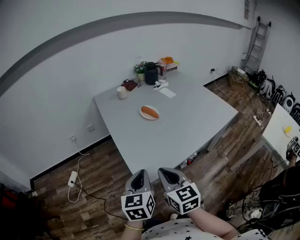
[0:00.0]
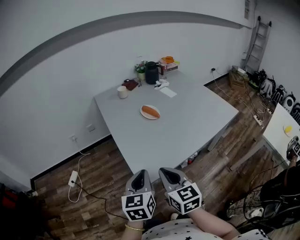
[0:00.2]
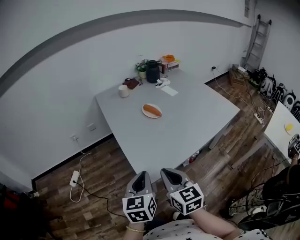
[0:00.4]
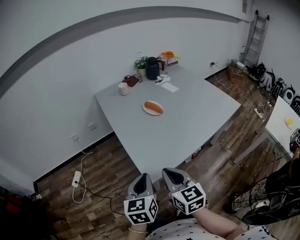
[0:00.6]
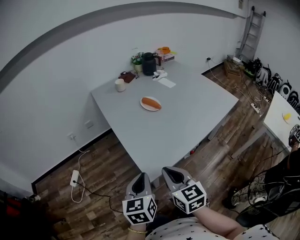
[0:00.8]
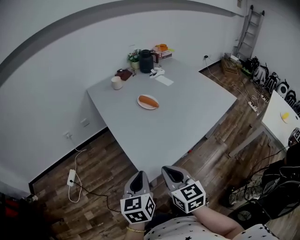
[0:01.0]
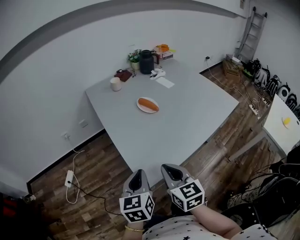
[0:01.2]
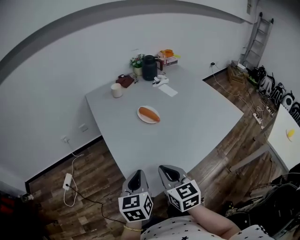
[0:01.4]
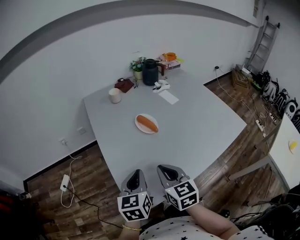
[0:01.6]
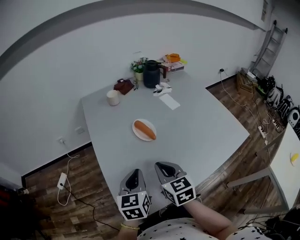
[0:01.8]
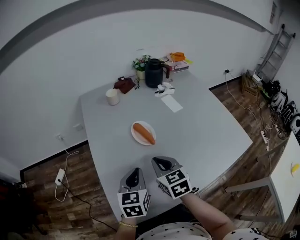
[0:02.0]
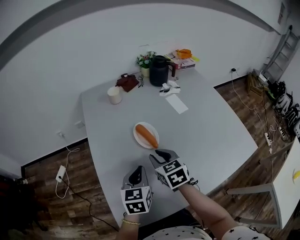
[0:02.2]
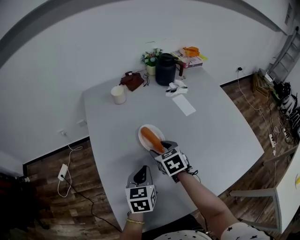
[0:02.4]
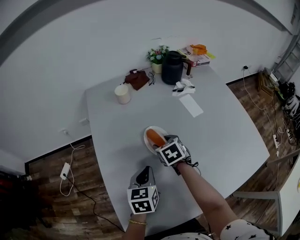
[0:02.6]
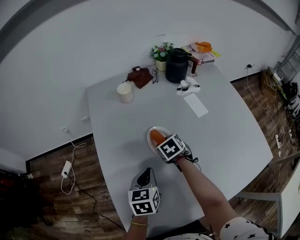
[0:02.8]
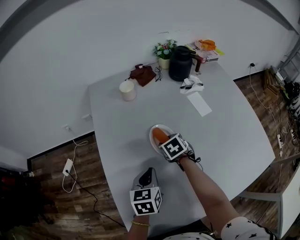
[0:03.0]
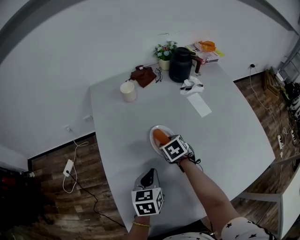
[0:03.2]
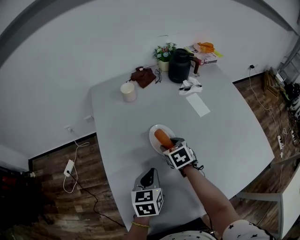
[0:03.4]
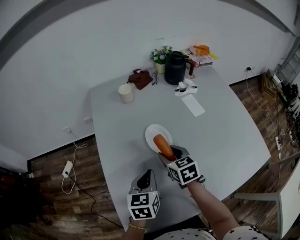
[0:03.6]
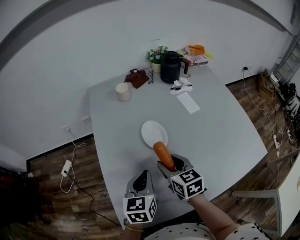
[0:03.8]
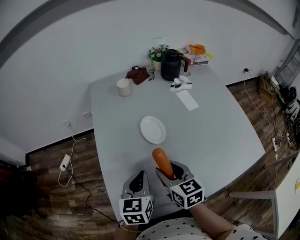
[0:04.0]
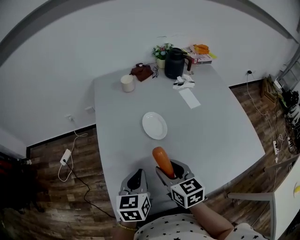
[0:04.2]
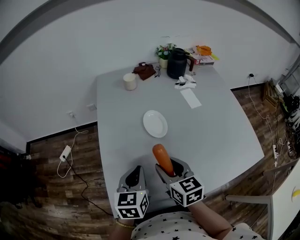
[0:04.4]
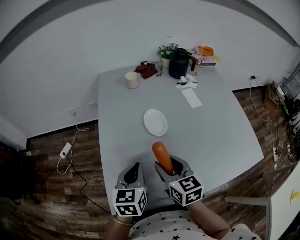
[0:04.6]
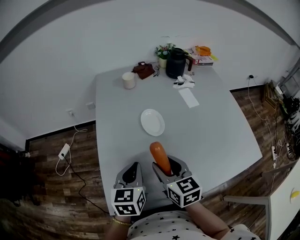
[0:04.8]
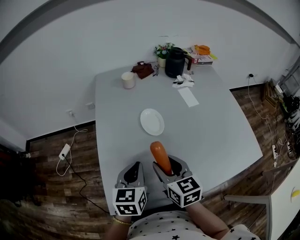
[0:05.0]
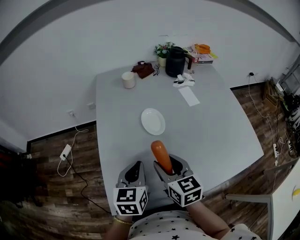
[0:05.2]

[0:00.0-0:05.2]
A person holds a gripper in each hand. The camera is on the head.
0:00.0 to 0:01.8: Both grippers move forward, about 25 cm.
0:01.8 to 0:03.4: The right gripper heads forward and downward, covering some 30 cm, swivels some 30 degrees, and opens its fingers. Meanwhile the left gripper travels forward and downward by some 15 cm.
0:03.4 to 0:05.2: The right gripper goes some 25 cm backward and upward, and rotates approximately 30 degrees. The left gripper shifts roughly 15 cm backward and upward.

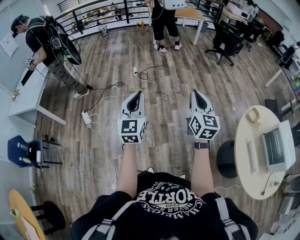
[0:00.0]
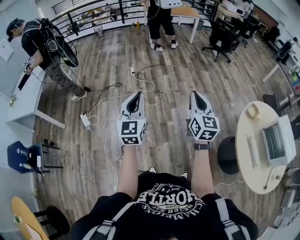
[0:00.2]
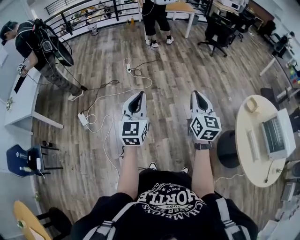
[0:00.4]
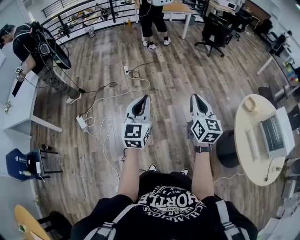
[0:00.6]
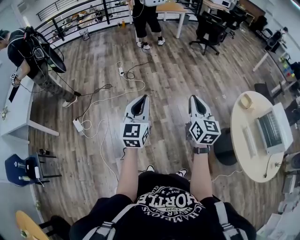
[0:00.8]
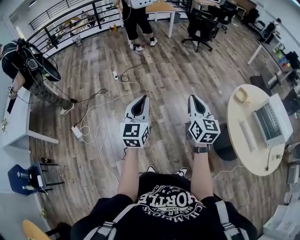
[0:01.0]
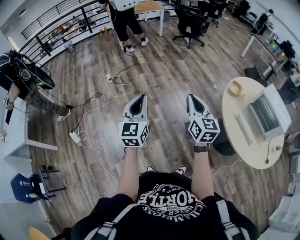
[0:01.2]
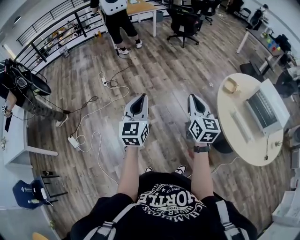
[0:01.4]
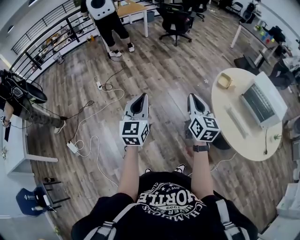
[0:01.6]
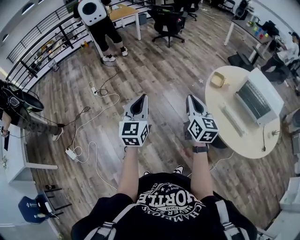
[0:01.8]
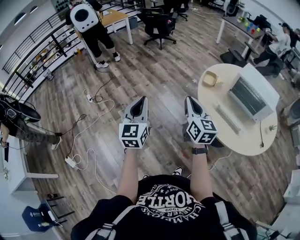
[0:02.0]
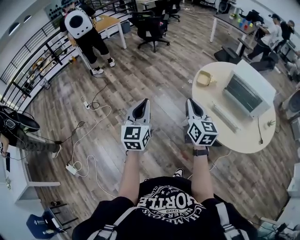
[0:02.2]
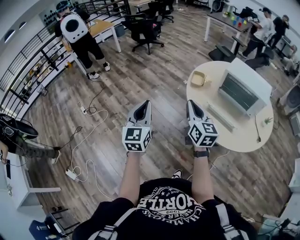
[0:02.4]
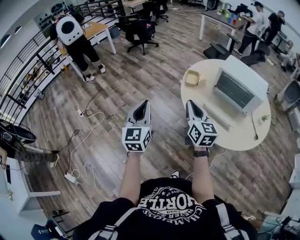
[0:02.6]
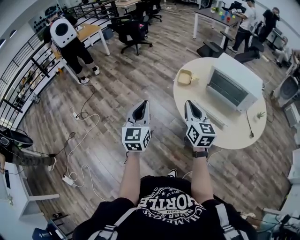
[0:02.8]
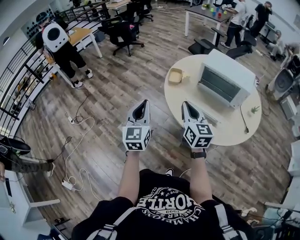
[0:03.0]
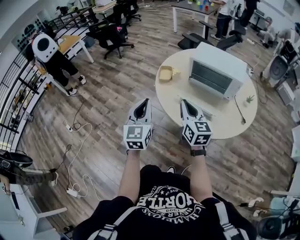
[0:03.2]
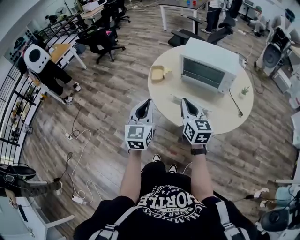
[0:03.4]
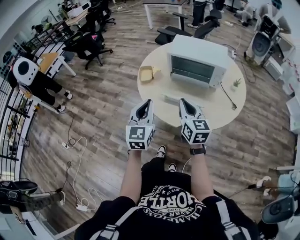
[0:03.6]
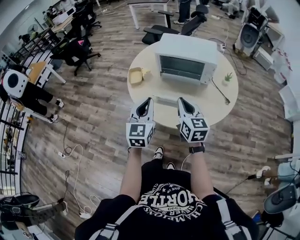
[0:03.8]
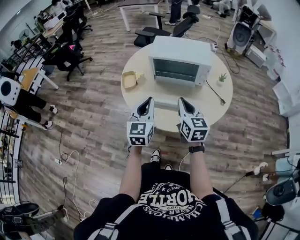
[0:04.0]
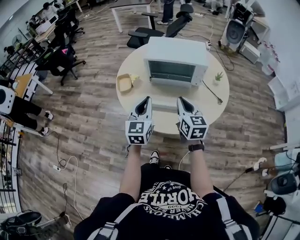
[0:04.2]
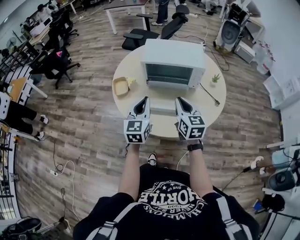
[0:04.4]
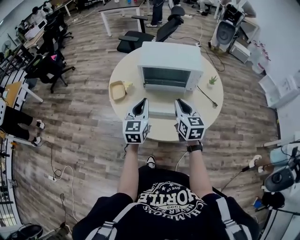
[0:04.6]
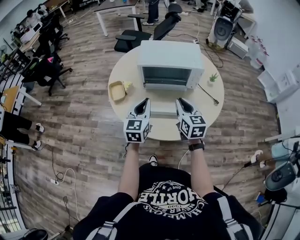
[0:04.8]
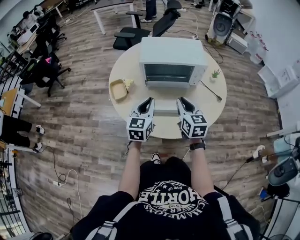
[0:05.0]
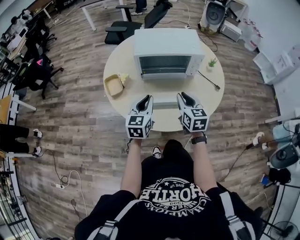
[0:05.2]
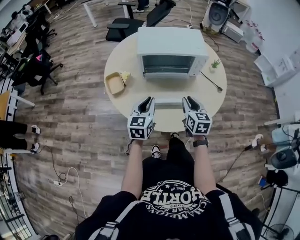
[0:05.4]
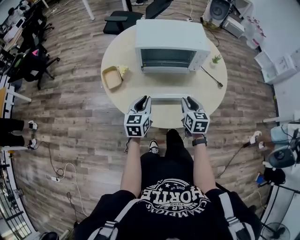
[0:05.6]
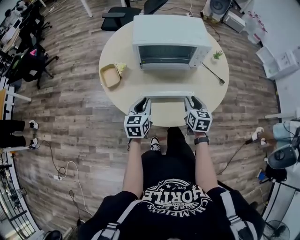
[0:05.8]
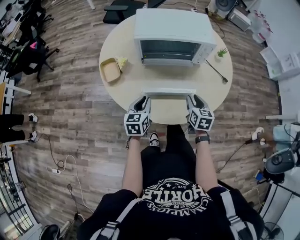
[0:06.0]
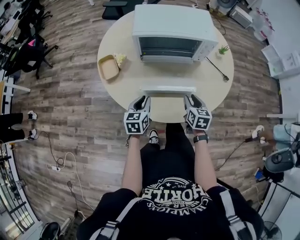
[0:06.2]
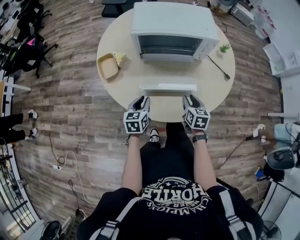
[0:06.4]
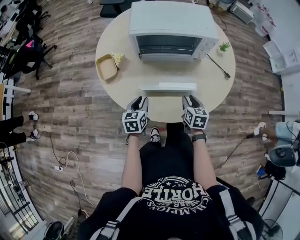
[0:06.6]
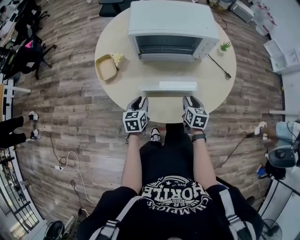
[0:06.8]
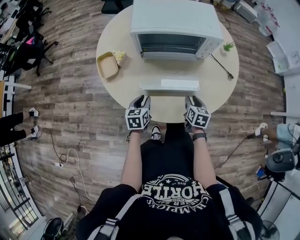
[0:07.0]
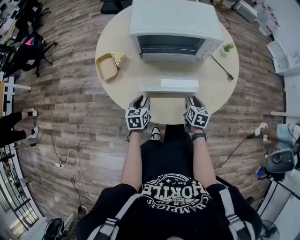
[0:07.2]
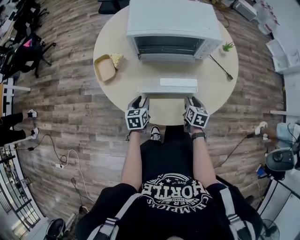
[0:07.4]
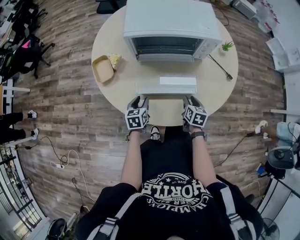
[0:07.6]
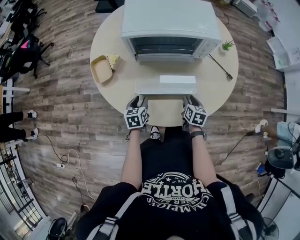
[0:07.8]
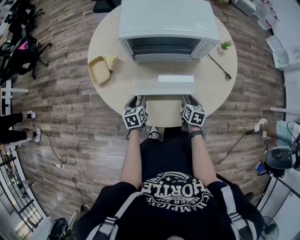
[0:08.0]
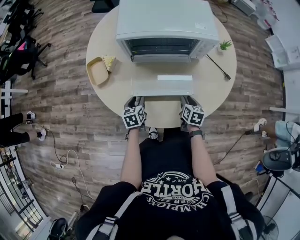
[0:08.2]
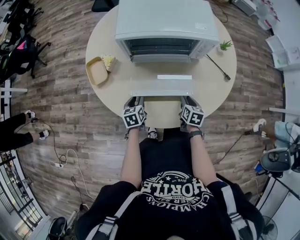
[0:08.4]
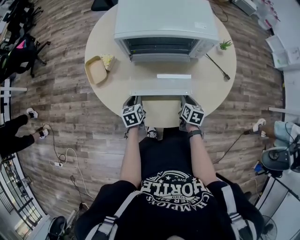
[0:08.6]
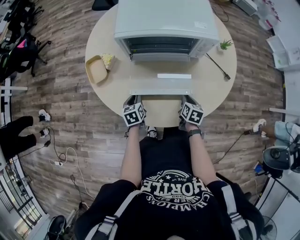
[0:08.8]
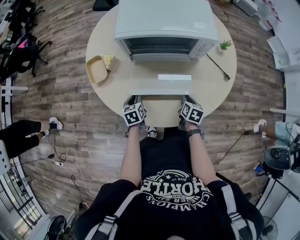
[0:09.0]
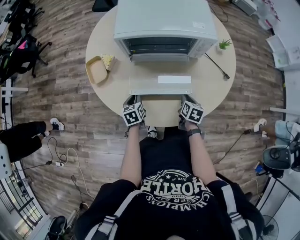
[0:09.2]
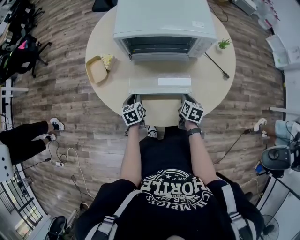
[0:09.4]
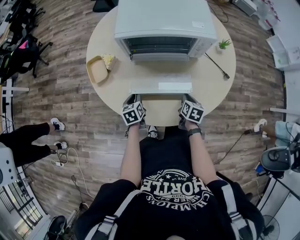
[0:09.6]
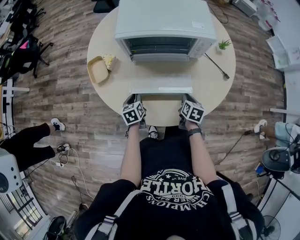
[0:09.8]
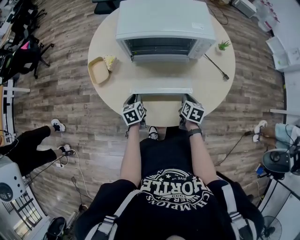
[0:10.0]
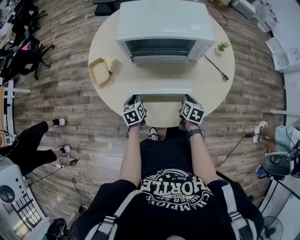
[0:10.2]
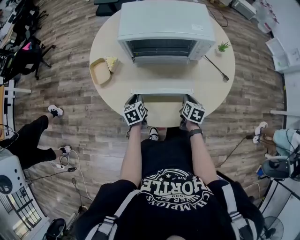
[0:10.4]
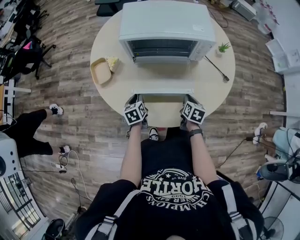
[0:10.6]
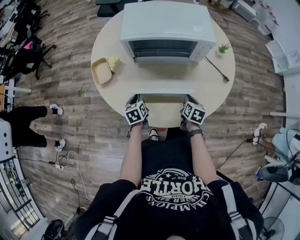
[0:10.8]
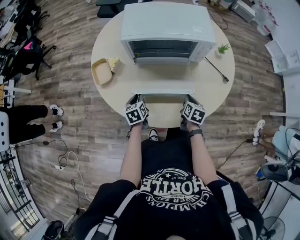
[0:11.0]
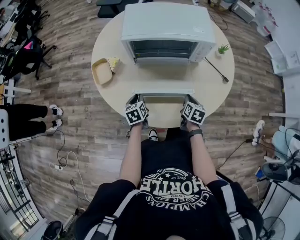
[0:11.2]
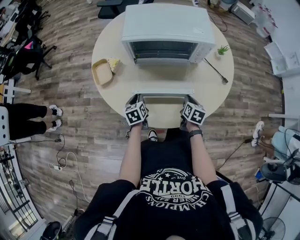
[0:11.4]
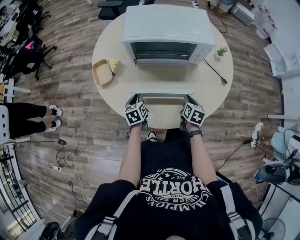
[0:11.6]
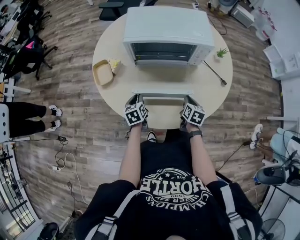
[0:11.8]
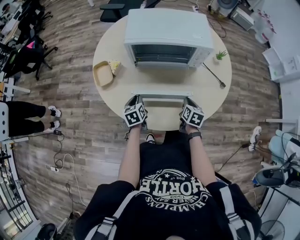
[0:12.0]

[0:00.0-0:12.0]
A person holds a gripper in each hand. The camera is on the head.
0:00.0 to 0:01.6: Both grippers travel together to the right, approximately 25 cm. The left gripper changes its angle by approximately 30 degrees; the right gripper rotates about 20 degrees.
0:01.6 to 0:03.0: The grippers both shift to the right by about 30 cm. The left gripper turns by some 20 degrees.
0:03.0 to 0:04.4: The left gripper ends up approximately 30 cm from where it was, and rotates about 30 degrees. The right gripper moves some 25 cm, and turns by about 30 degrees.
0:04.4 to 0:06.0: Both grippers travel together downward, some 20 cm. The left gripper rotates approximately 30 degrees; the right gripper changes its angle by roughly 30 degrees, and opens its fingers.
0:06.0 to 0:07.6: The grippers both shift downward by roughly 10 cm. The left gripper opens its fingers.
0:07.6 to 0:09.0: The left gripper closes its fingers.
0:09.0 to 0:12.0: There are only small adjustments of the grippers.

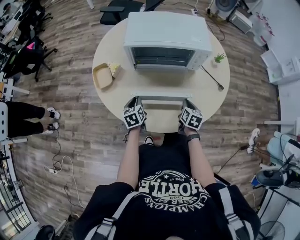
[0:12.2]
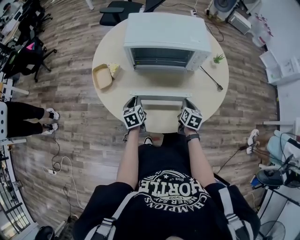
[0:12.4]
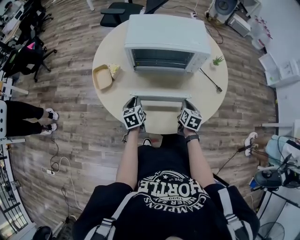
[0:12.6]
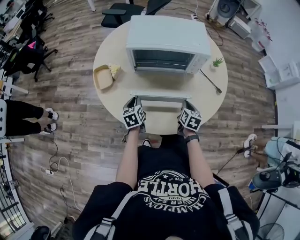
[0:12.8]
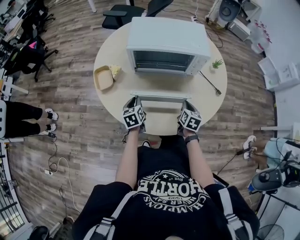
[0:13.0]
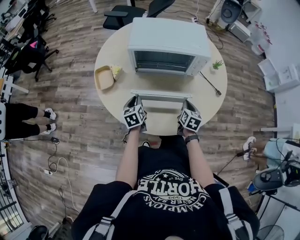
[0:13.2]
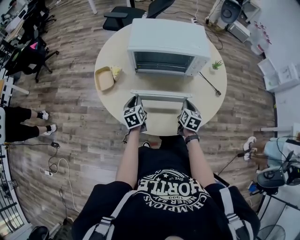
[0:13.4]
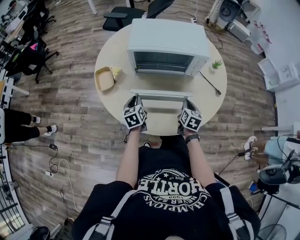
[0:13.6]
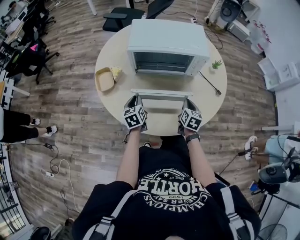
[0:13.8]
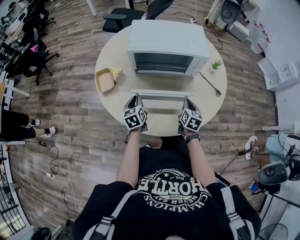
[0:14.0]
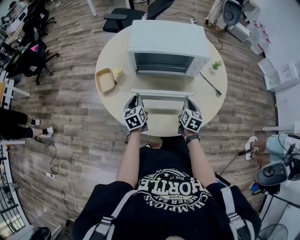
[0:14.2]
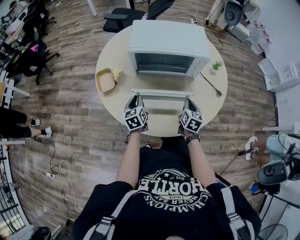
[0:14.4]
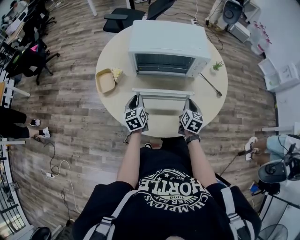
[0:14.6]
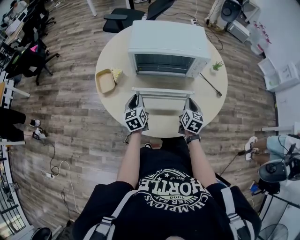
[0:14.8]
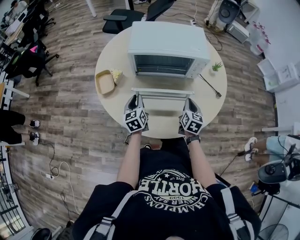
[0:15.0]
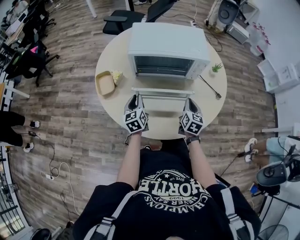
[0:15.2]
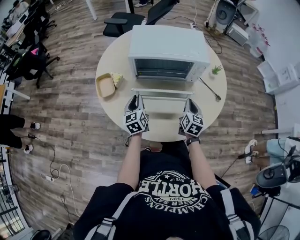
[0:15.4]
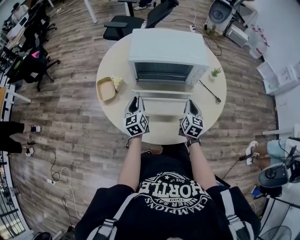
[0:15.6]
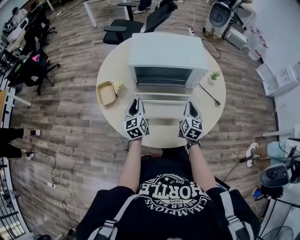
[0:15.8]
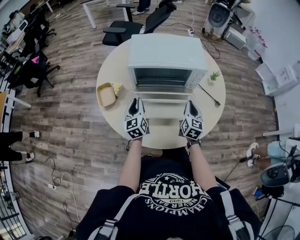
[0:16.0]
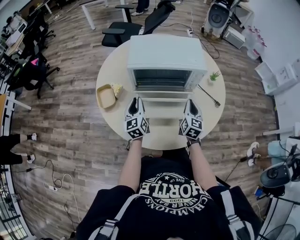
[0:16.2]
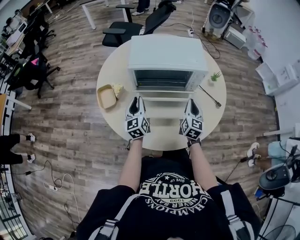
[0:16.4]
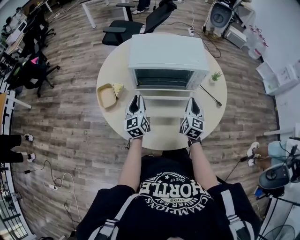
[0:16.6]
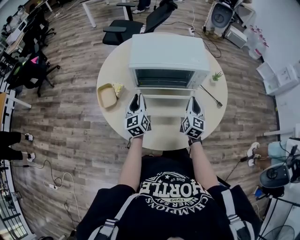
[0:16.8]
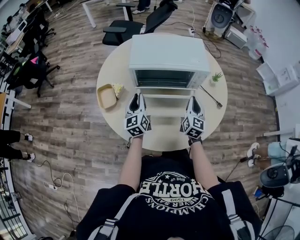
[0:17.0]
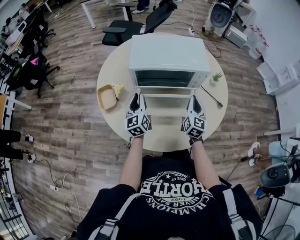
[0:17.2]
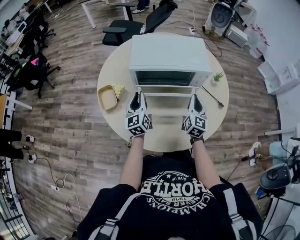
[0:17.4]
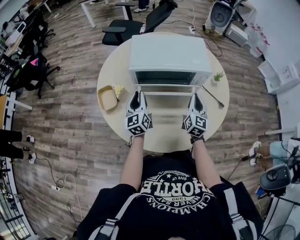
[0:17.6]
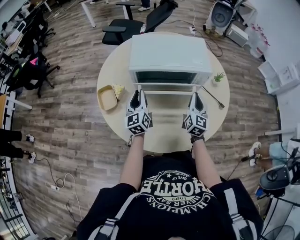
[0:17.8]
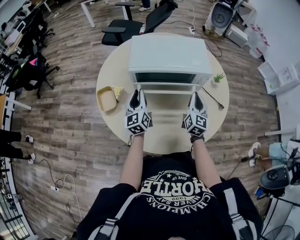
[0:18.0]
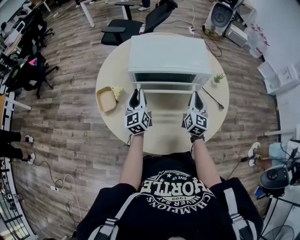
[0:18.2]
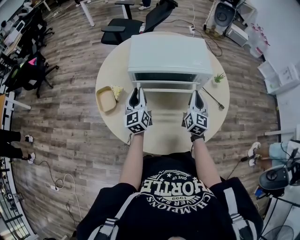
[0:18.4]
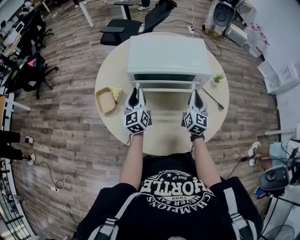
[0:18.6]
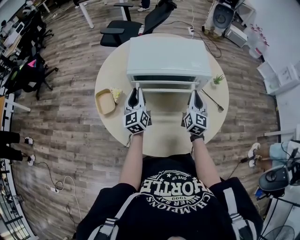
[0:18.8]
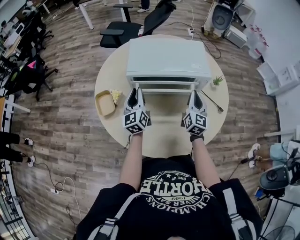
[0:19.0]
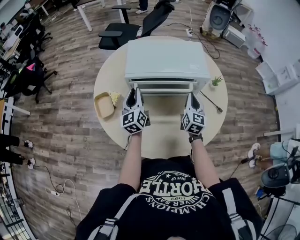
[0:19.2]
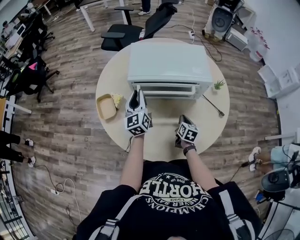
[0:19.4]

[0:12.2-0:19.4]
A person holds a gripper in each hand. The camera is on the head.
0:12.2 to 0:13.6: There are only small adjustments of the grippers.
0:13.6 to 0:15.0: The grippers move only a little.
0:15.0 to 0:16.6: The grippers both shift upward and forward by approximately 10 cm.
0:16.6 to 0:18.0: The left gripper moves roughly 5 cm, while the right gripper shifts by roughly 5 cm.
0:18.0 to 0:19.4: The right gripper is displaced downward by about 20 cm, and points its fingers about 30 degrees further downward.
